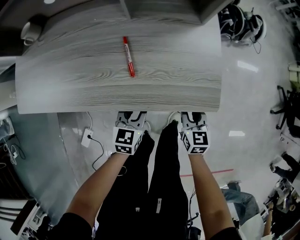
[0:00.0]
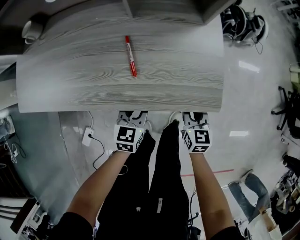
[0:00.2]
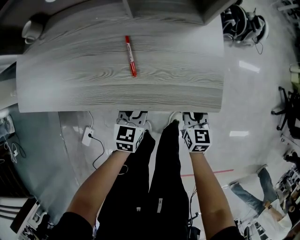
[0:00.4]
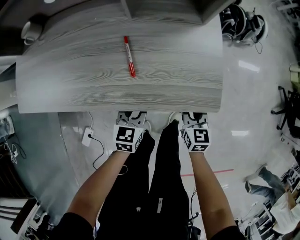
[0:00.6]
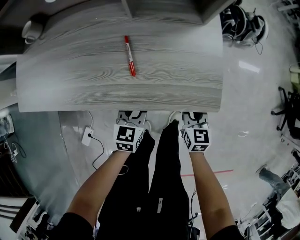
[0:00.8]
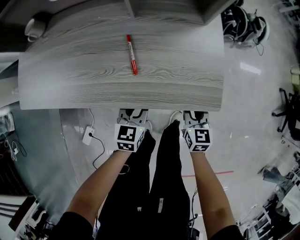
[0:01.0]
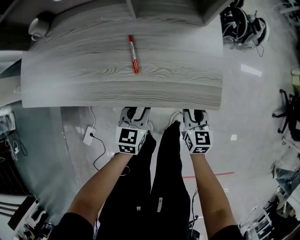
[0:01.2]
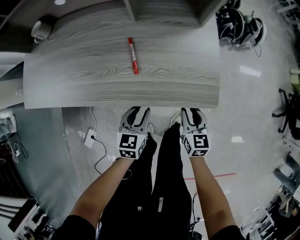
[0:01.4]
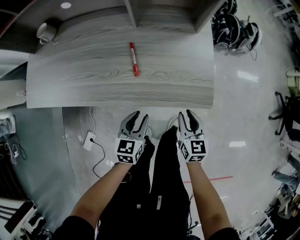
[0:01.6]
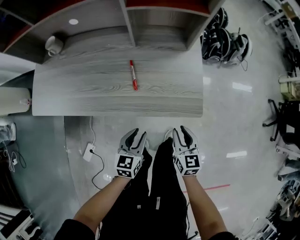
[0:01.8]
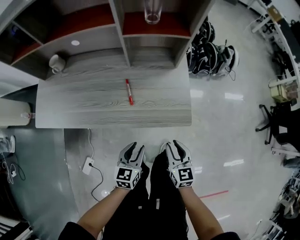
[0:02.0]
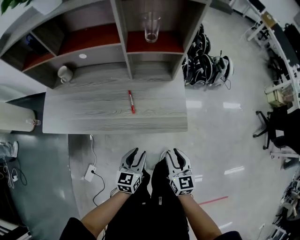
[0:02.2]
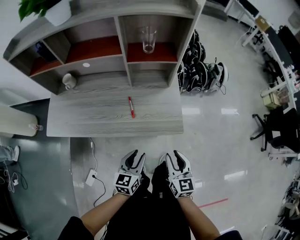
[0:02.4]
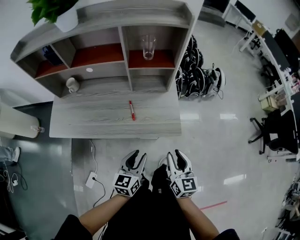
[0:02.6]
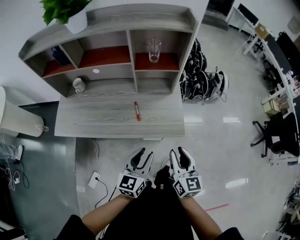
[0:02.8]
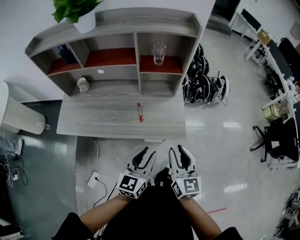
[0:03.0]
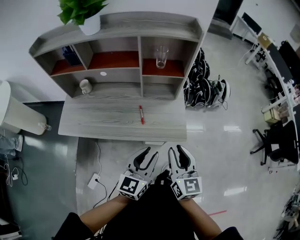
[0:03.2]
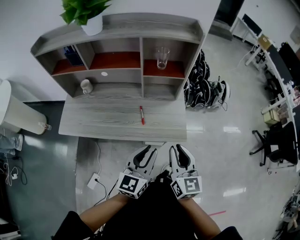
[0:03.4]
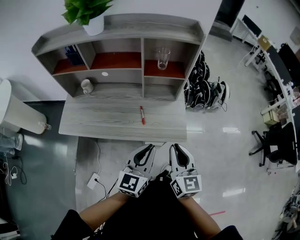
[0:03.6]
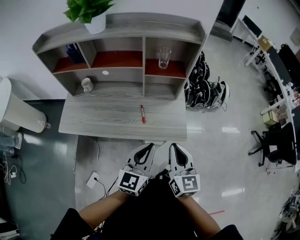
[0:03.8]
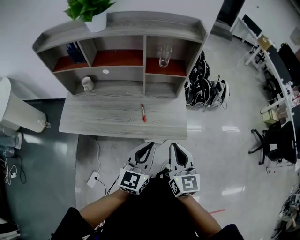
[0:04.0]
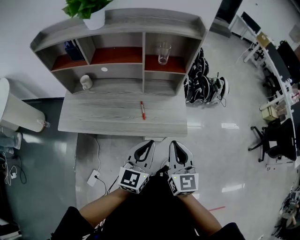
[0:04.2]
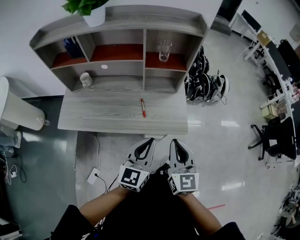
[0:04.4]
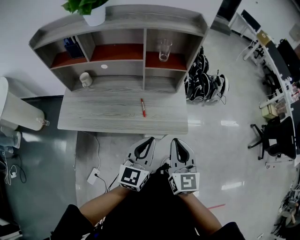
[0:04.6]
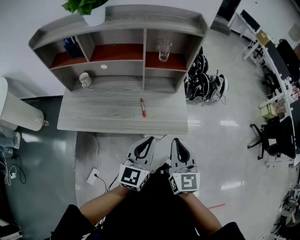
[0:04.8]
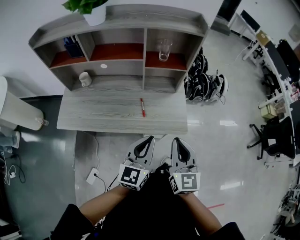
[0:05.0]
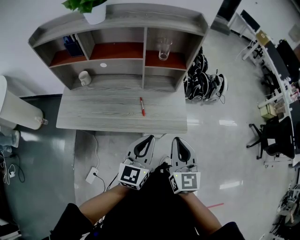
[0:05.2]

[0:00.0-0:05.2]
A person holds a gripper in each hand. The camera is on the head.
0:00.0 to 0:01.8: The left gripper travels backward and upward by about 10 cm, while the right gripper moves upward and backward, roughly 10 cm.
0:01.8 to 0:03.4: The grippers both shift upward by approximately 35 cm. The left gripper swivels approximately 30 degrees. The right gripper rotates some 20 degrees.
0:03.4 to 0:05.2: The left gripper closes up.

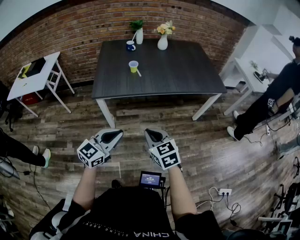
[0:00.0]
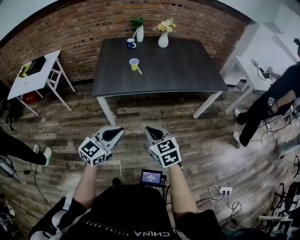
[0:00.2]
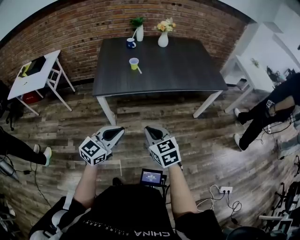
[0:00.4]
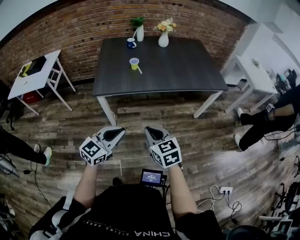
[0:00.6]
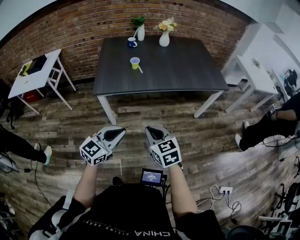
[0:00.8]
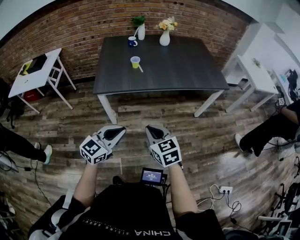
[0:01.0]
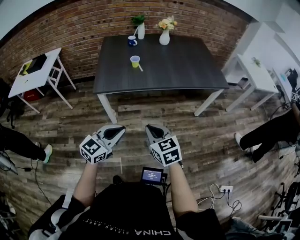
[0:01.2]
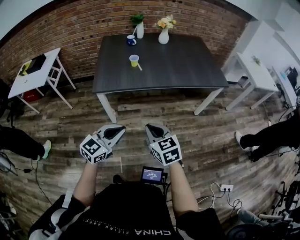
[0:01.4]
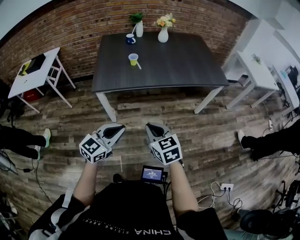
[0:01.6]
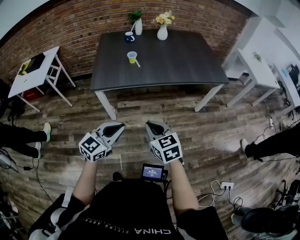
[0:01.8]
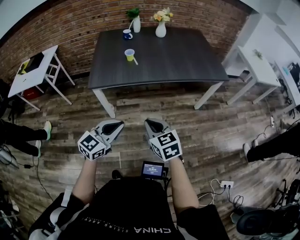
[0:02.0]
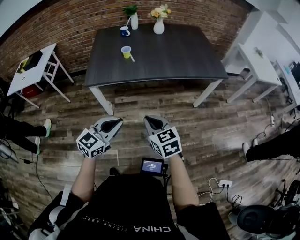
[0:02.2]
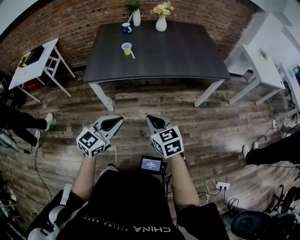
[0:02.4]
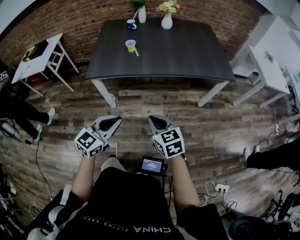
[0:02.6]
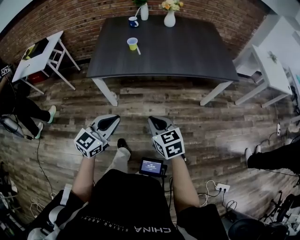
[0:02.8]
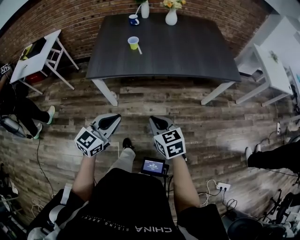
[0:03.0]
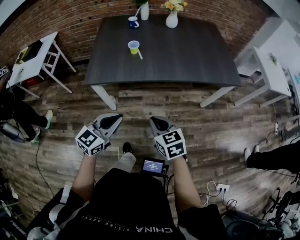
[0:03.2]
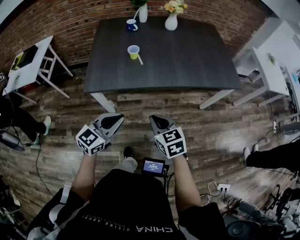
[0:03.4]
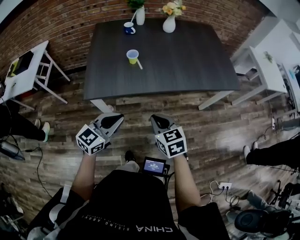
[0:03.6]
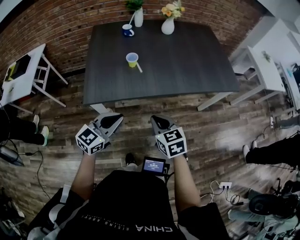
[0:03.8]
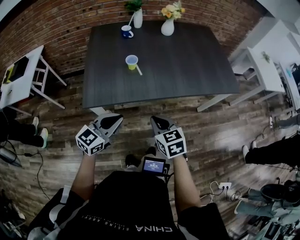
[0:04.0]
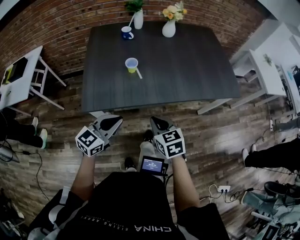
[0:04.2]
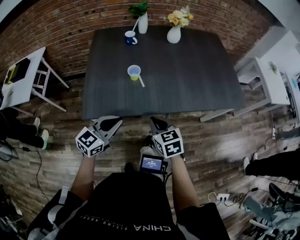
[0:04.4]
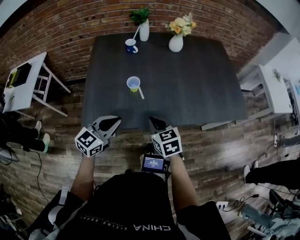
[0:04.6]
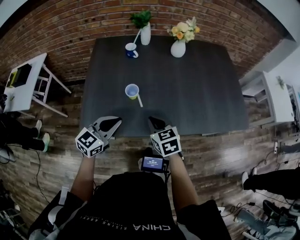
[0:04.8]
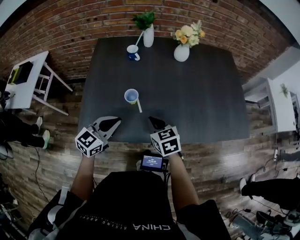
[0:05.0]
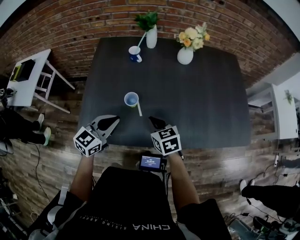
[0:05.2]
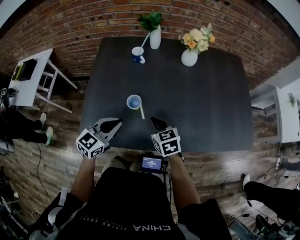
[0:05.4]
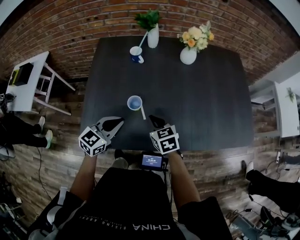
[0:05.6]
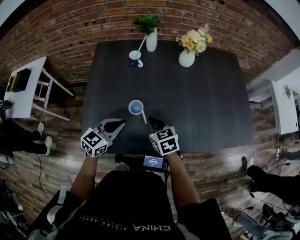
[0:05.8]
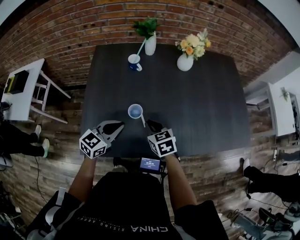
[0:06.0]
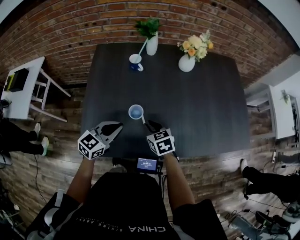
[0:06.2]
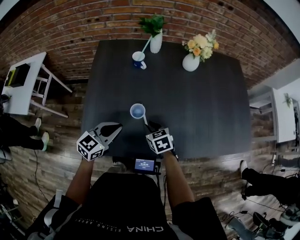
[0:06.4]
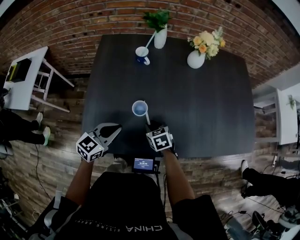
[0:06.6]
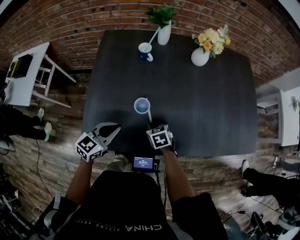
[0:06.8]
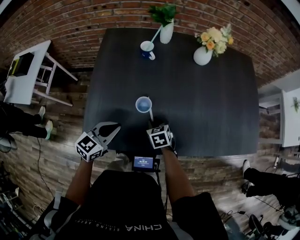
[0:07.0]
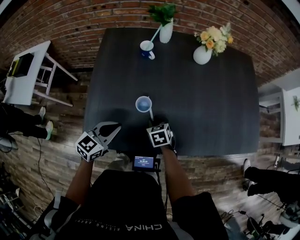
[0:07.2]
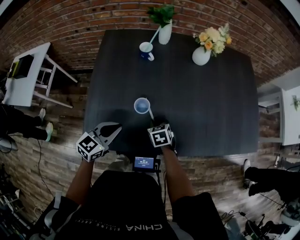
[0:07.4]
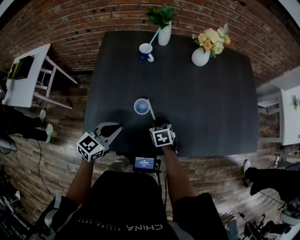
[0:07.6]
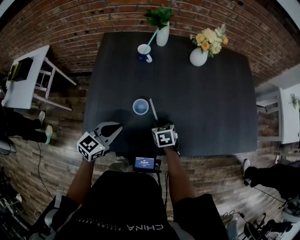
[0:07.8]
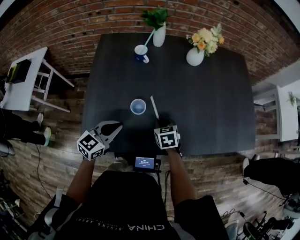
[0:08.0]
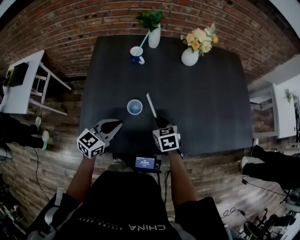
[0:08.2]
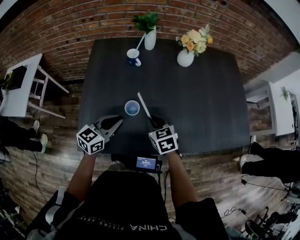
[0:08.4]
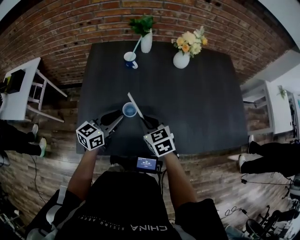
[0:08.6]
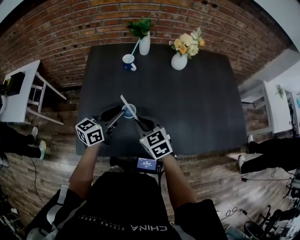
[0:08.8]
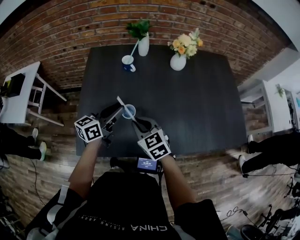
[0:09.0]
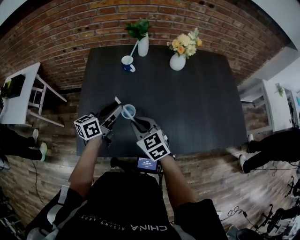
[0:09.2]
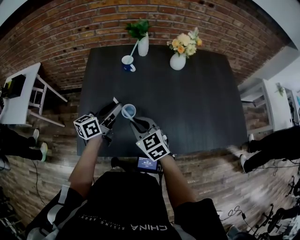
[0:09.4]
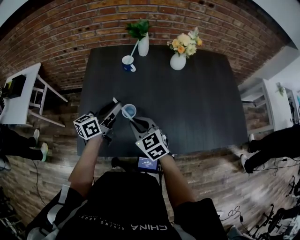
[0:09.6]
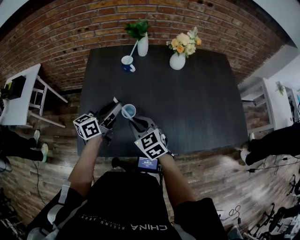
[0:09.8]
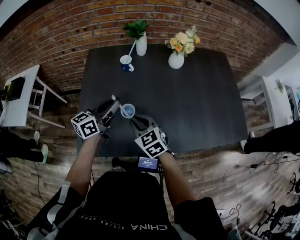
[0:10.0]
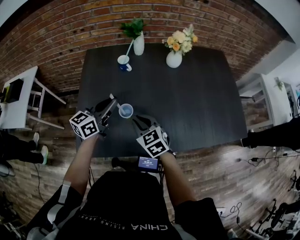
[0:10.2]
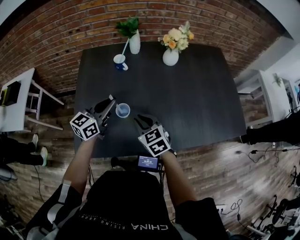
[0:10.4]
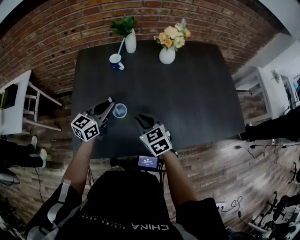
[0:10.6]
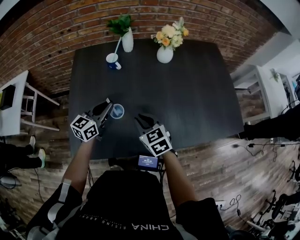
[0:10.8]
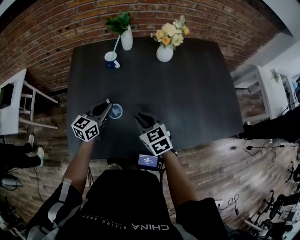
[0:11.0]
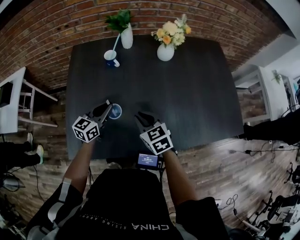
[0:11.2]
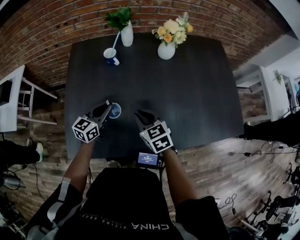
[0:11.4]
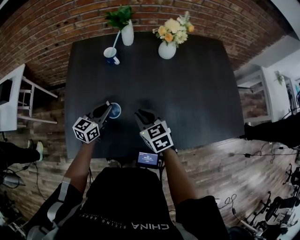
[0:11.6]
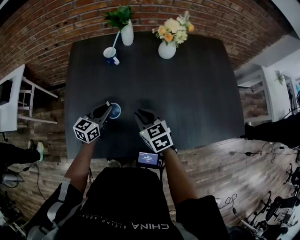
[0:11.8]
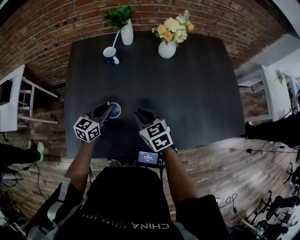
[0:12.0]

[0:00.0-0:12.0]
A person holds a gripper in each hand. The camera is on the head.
0:00.0 to 0:01.6: The grippers stay close to where they were, moving slightly.
0:01.6 to 0:03.0: The left gripper travels forward by about 5 cm, while the right gripper is displaced forward, to the right and downward by some 10 cm.
0:03.0 to 0:04.4: Both grippers move forward and to the left, about 25 cm.
0:04.4 to 0:06.0: Both grippers move forward, approximately 25 cm.
0:06.0 to 0:07.6: The right gripper heads downward, covering approximately 10 cm.
0:07.6 to 0:09.0: The left gripper shifts approximately 10 cm forward and upward, swivels roughly 30 degrees, and opens; the right gripper travels upward by roughly 20 cm, and turns by about 30 degrees.
0:09.0 to 0:10.4: The grippers move only a little.
0:10.4 to 0:12.0: The left gripper is displaced downward by roughly 10 cm. The right gripper moves approximately 5 cm.

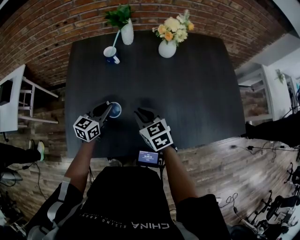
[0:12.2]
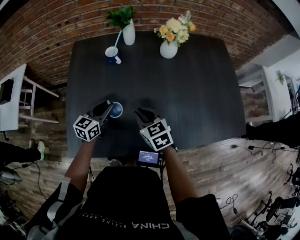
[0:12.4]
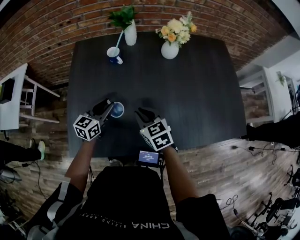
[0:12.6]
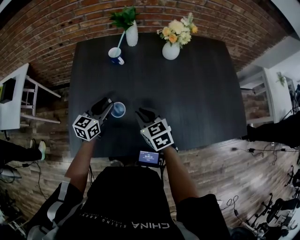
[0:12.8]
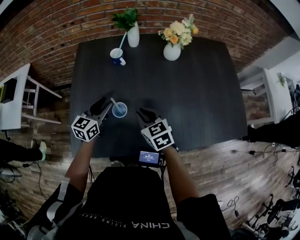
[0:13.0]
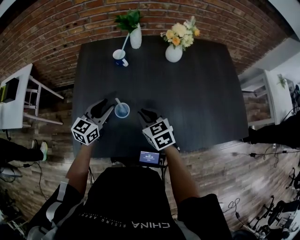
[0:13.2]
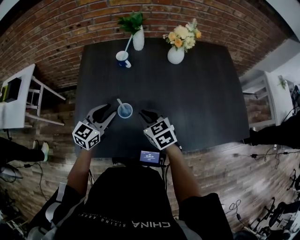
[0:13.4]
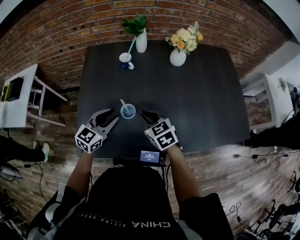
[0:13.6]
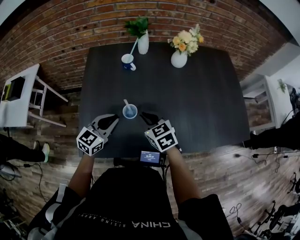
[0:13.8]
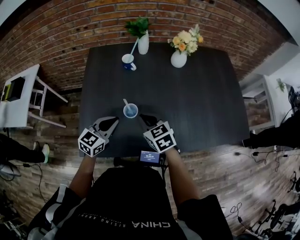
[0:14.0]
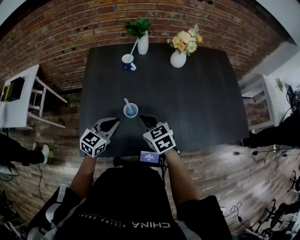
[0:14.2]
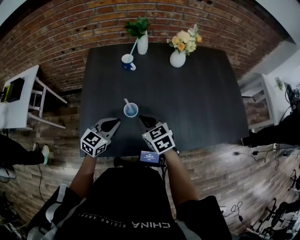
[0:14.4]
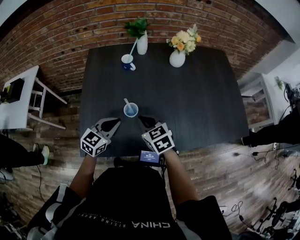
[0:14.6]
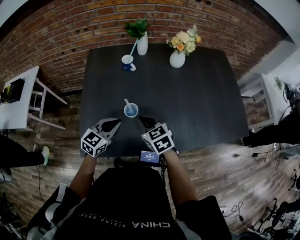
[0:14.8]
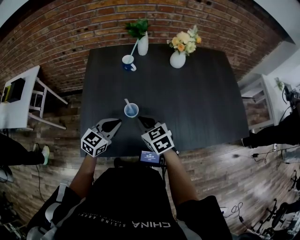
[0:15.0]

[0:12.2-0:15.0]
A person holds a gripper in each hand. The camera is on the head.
0:12.2 to 0:13.6: The left gripper shifts about 10 cm upward and backward, and opens its fingers.
0:13.6 to 0:15.0: The left gripper closes.

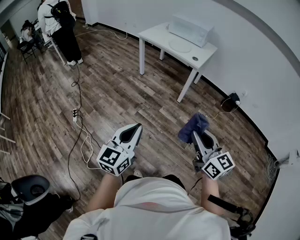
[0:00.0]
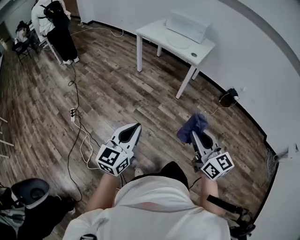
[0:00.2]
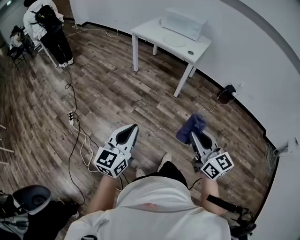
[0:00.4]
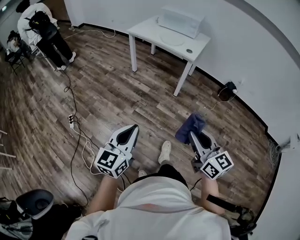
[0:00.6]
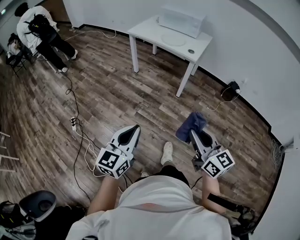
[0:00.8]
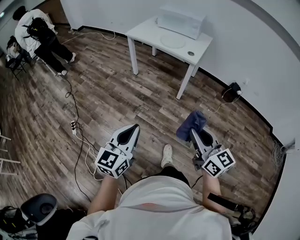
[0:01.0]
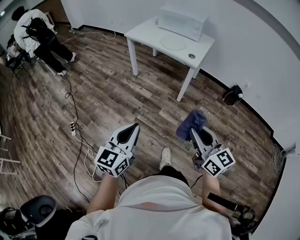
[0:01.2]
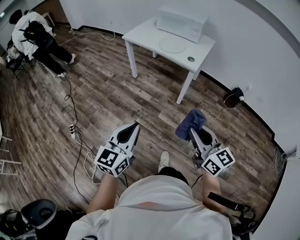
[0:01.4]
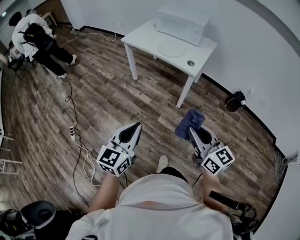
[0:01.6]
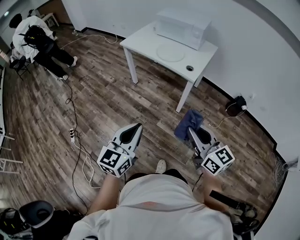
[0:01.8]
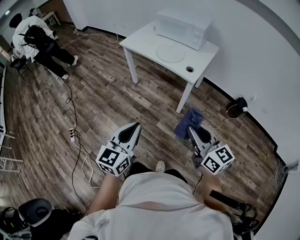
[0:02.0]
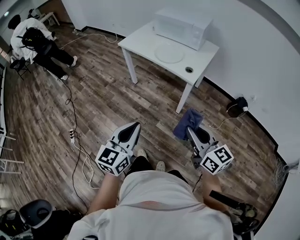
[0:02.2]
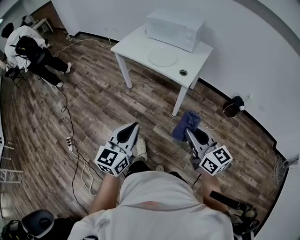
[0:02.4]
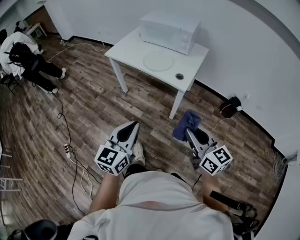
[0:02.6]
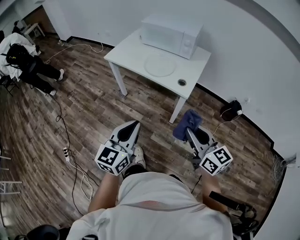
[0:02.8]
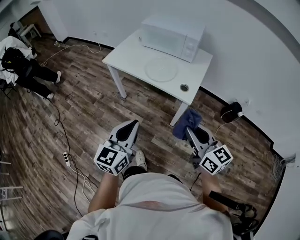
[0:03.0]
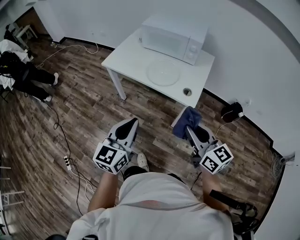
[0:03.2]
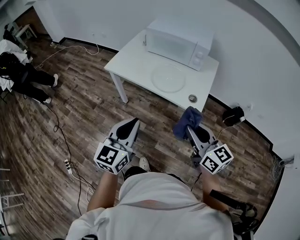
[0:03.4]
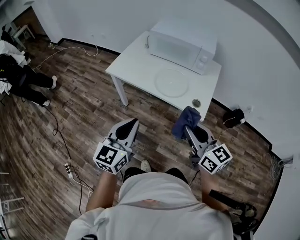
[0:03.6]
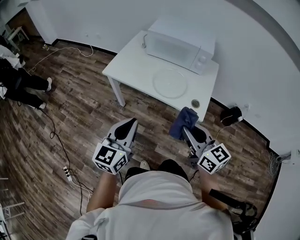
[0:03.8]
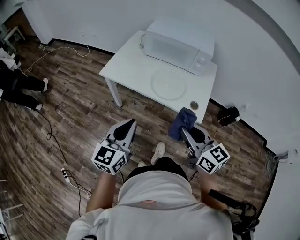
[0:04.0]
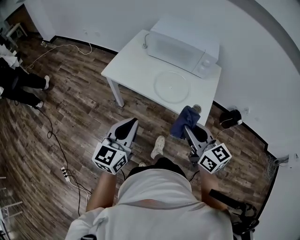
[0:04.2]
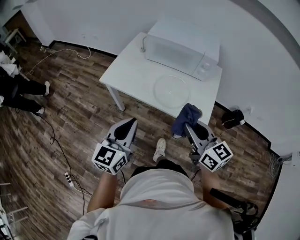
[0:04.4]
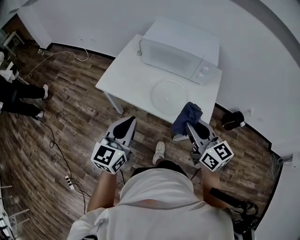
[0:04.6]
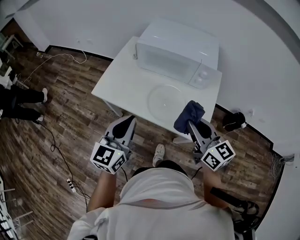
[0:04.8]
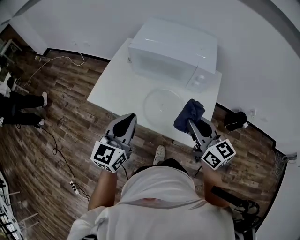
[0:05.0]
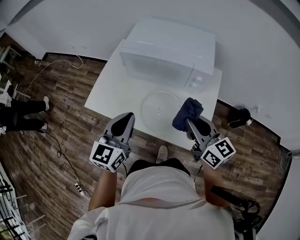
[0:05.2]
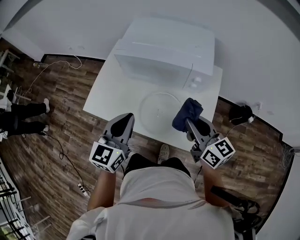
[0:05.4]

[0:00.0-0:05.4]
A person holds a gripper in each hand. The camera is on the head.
0:00.0 to 0:01.4: The two grippers go approximately 20 cm forward.
0:01.4 to 0:02.8: Both grippers move forward, some 25 cm.
0:02.8 to 0:04.0: Both grippers move forward and to the left, approximately 30 cm.
0:04.0 to 0:05.4: The right gripper travels forward and to the right by approximately 30 cm. Meanwhile the left gripper is displaced forward by about 30 cm.
